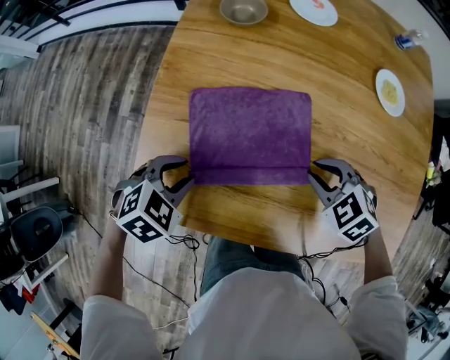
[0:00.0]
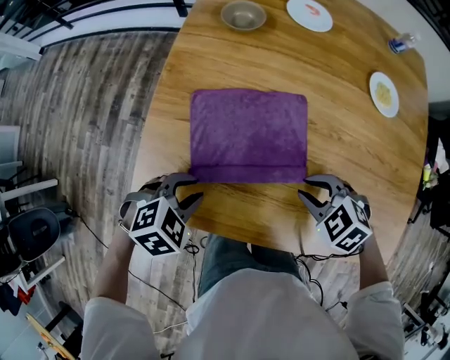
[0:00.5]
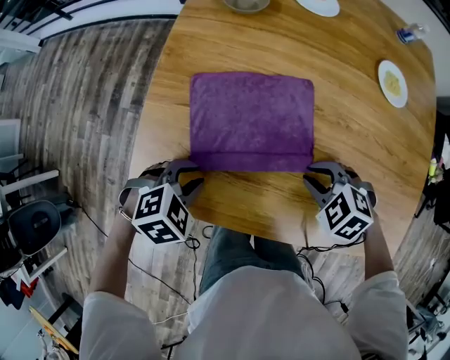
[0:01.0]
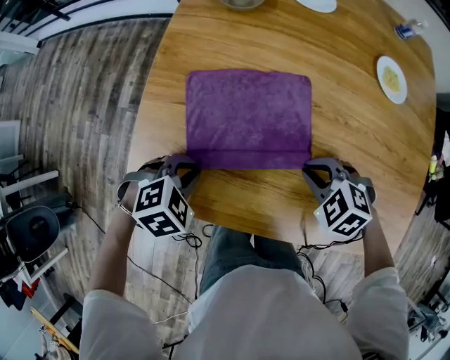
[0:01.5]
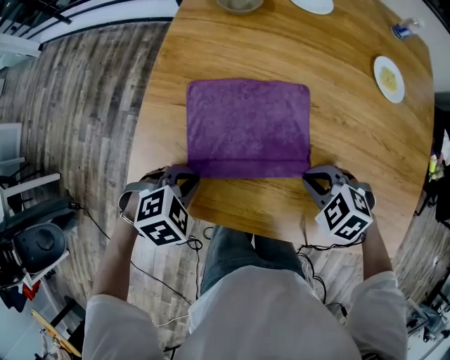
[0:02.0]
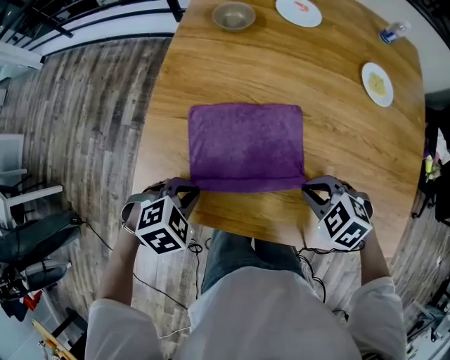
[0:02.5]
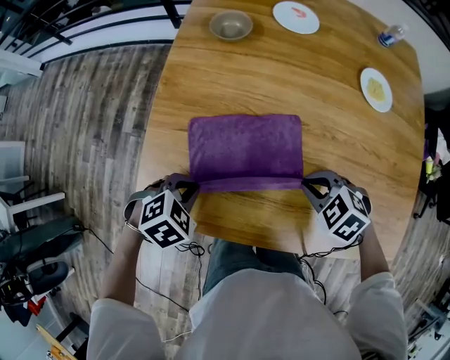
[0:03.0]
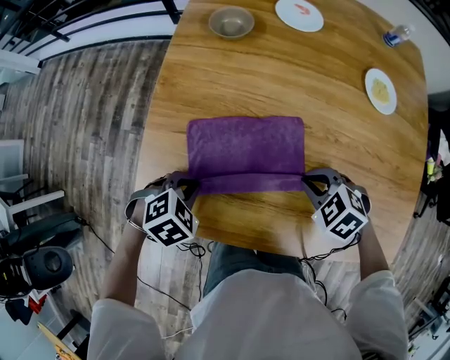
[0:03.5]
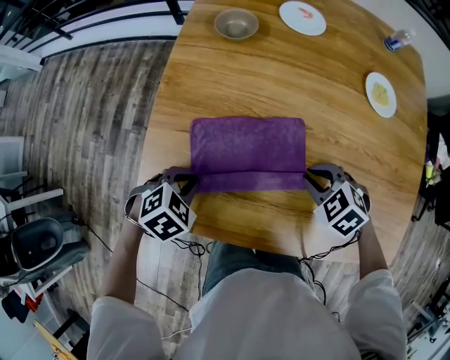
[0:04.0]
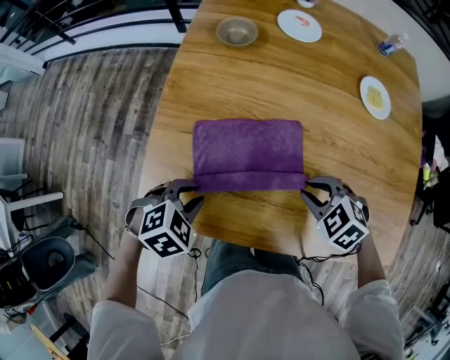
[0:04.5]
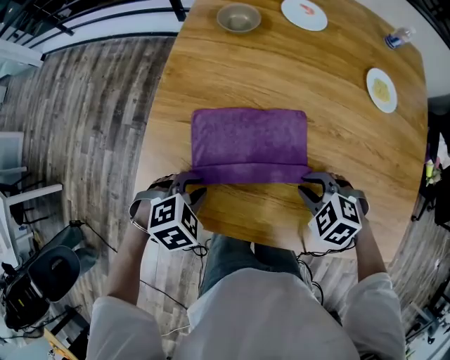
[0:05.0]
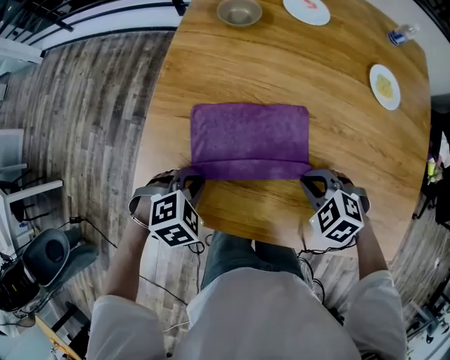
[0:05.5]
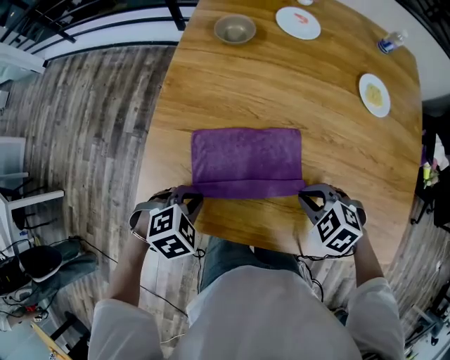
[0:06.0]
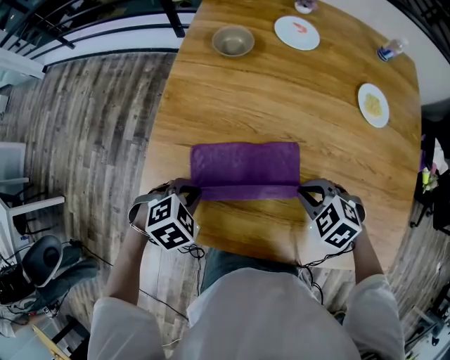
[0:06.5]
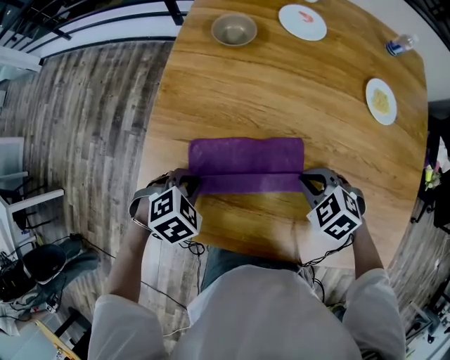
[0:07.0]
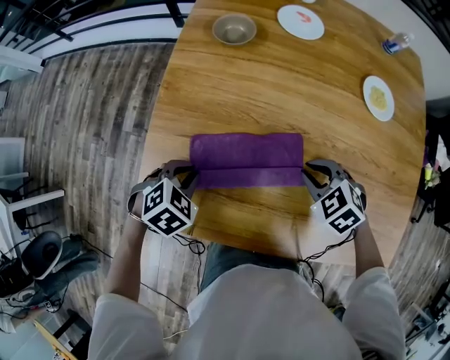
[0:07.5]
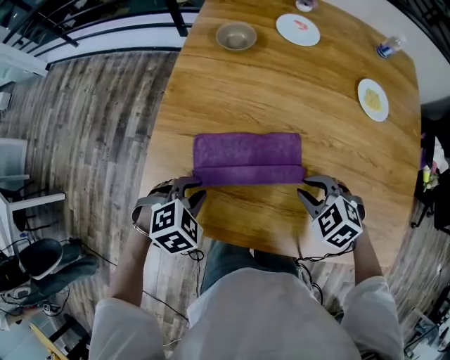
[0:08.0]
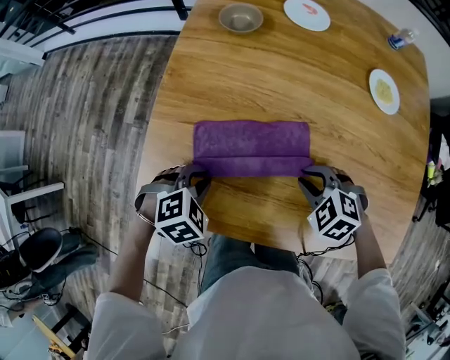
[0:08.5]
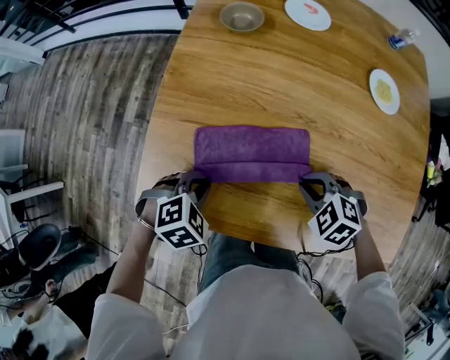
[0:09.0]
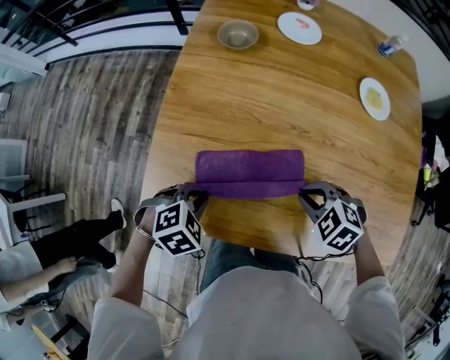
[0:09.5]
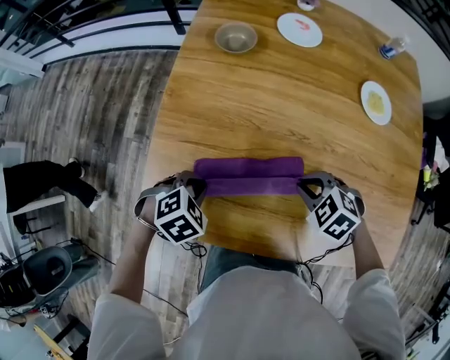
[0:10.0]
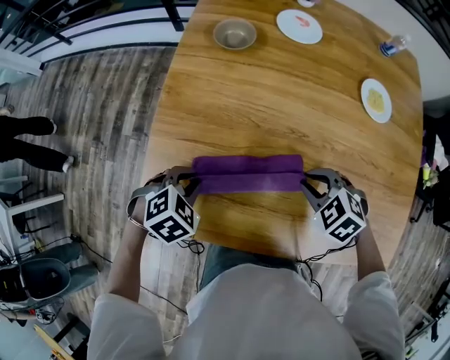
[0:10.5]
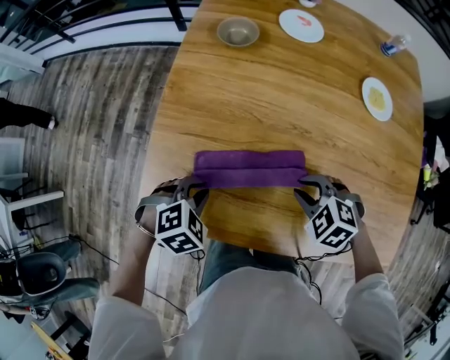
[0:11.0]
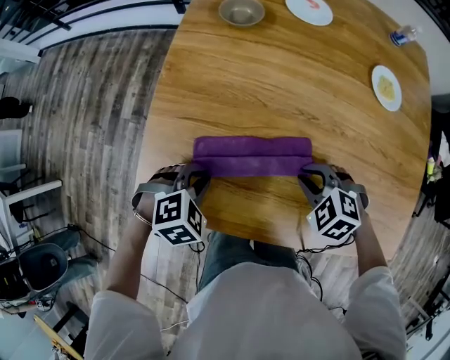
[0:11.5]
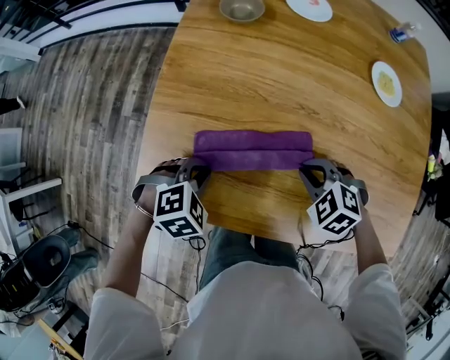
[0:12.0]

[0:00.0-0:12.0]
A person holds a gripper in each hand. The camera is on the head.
0:00.0 to 0:02.0: Both grippers travel together backward, some 5 cm.
0:02.0 to 0:04.0: The left gripper changes place by approximately 5 cm. The right gripper changes place by roughly 5 cm.
0:04.0 to 0:06.0: Both grippers travel together backward, some 5 cm.
0:08.0 to 0:12.0: The grippers make only small movements.

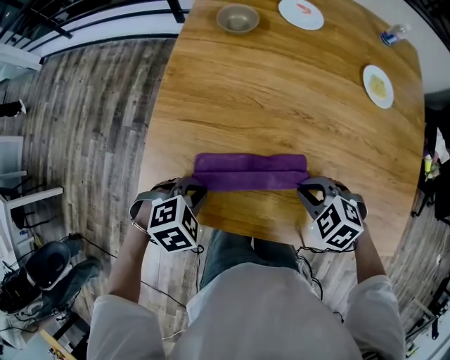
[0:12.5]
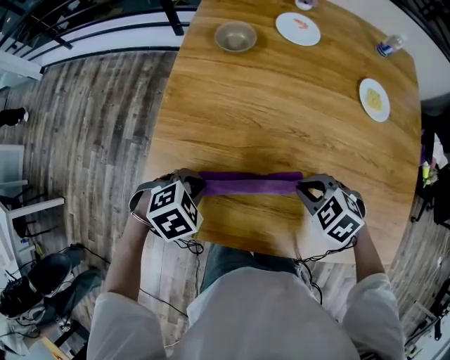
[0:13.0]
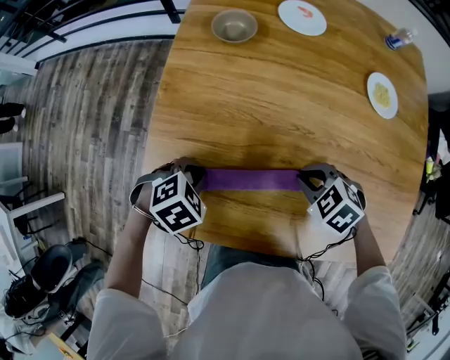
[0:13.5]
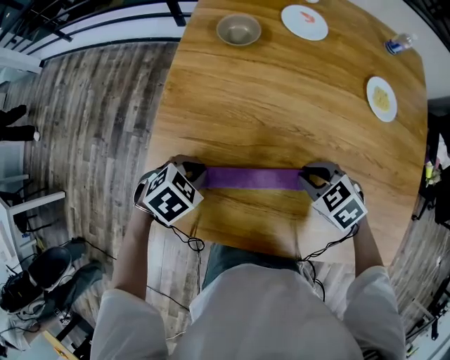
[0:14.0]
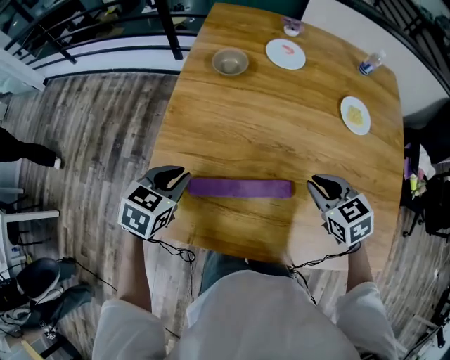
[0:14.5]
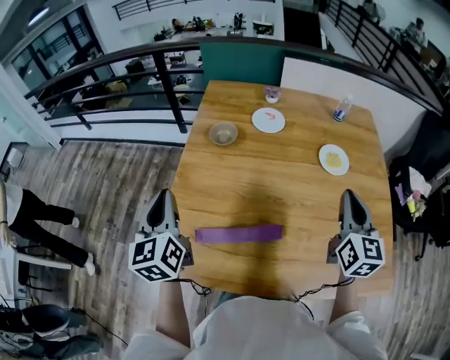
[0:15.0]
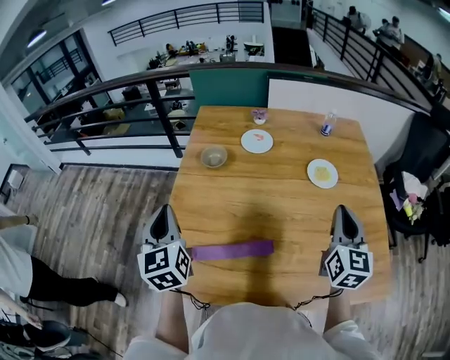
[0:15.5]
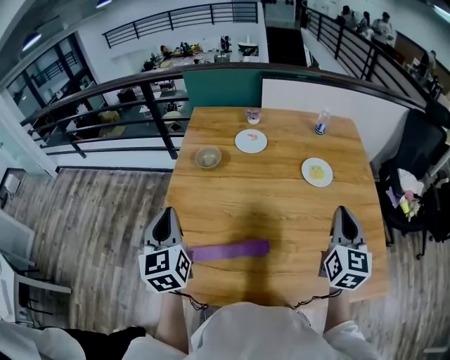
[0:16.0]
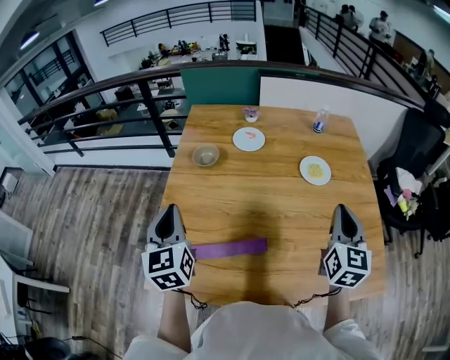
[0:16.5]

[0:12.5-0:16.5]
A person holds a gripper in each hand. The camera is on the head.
0:12.5 to 0:14.5: The grippers both shift forward and upward by approximately 15 cm. The right gripper rotates approximately 40 degrees; the left gripper changes its angle by approximately 40 degrees.
0:14.5 to 0:16.5: The right gripper moves upward and to the right, some 25 cm, and tilts its fingers roughly 40 degrees upward, while the left gripper shifts roughly 20 cm upward, and points its fingers approximately 40 degrees further upward.

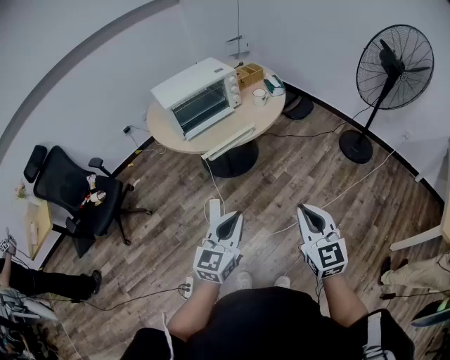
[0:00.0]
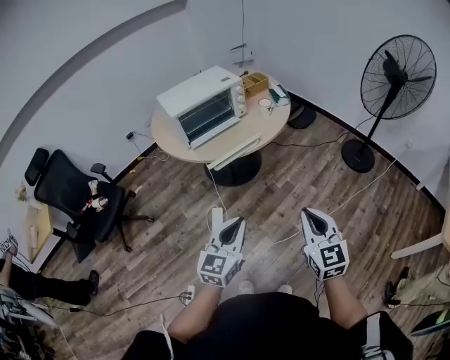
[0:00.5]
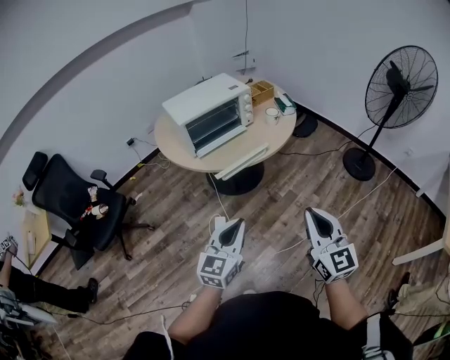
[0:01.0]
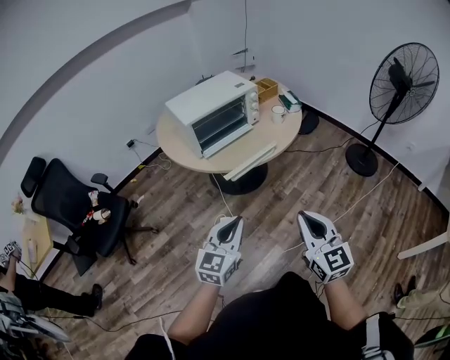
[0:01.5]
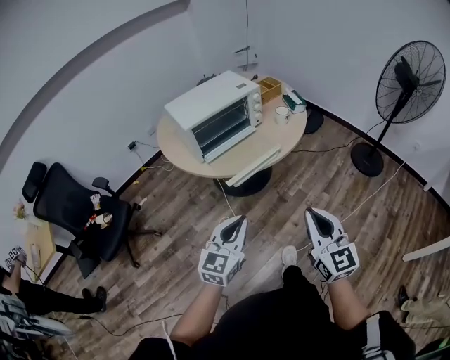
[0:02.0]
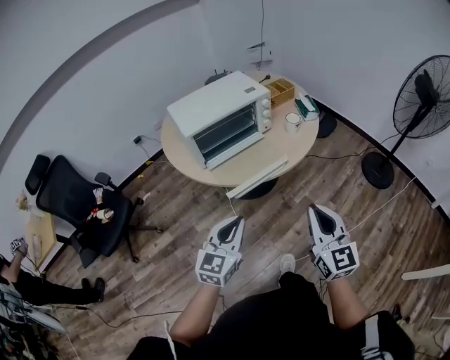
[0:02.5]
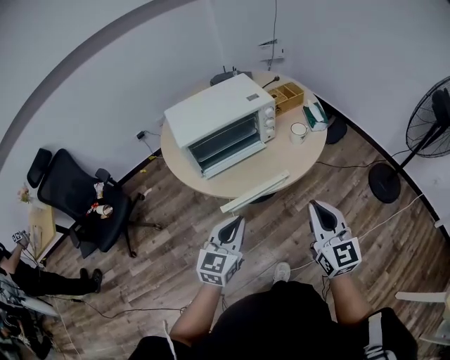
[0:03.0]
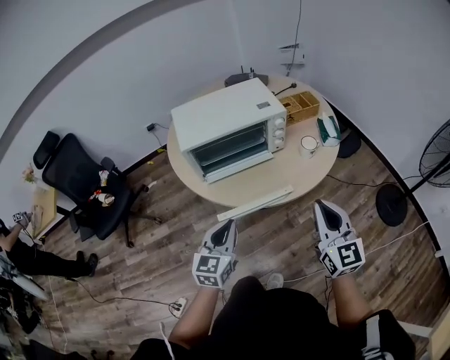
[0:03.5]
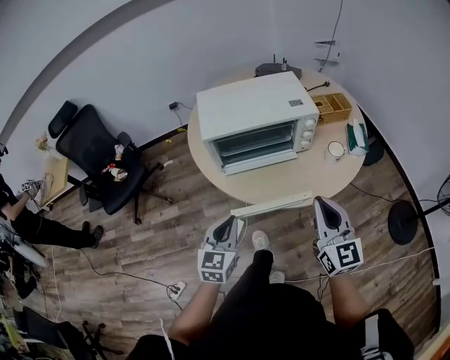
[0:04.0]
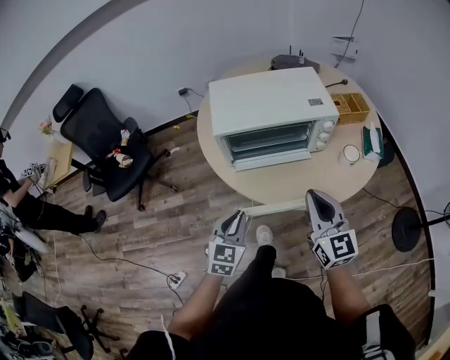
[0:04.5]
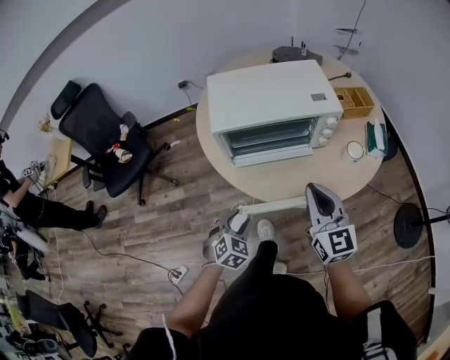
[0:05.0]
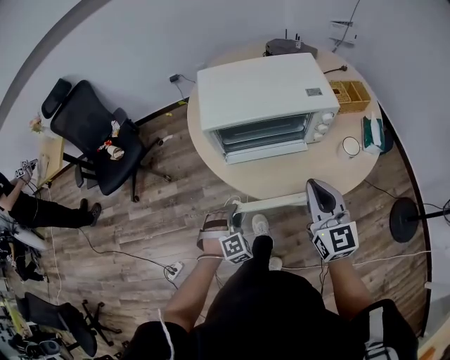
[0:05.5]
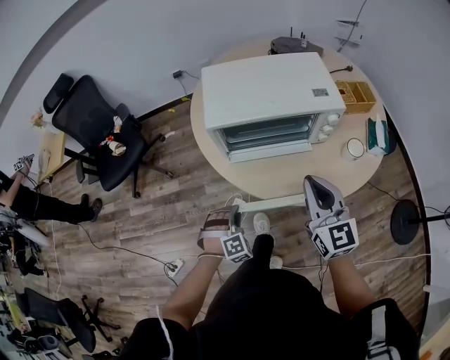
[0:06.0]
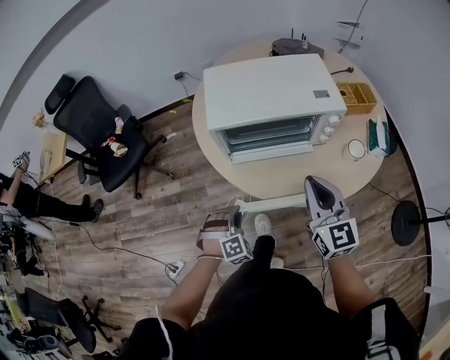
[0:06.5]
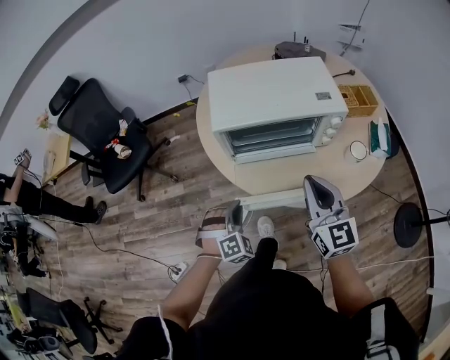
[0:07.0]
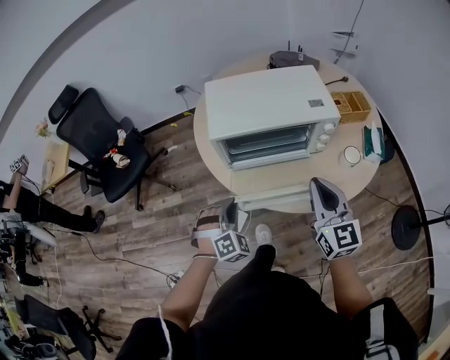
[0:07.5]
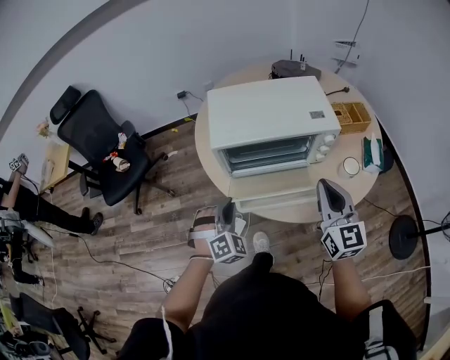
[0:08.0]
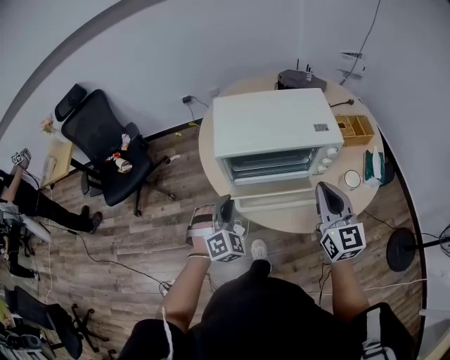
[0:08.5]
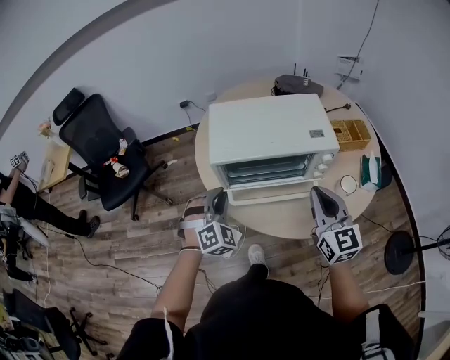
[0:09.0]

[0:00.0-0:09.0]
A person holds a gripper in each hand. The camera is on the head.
0:00.0 to 0:02.0: Both grippers travel together to the left and forward, roughly 15 cm.
0:02.0 to 0:04.5: The right gripper changes place by approximately 35 cm, and turns by approximately 30 degrees, while the left gripper changes place by about 25 cm, and turns by about 40 degrees.
0:04.5 to 0:07.0: The left gripper heads downward, covering roughly 5 cm, rolls clockwise, seen from behind, by some 50 degrees, and opens, then closes once more, while the right gripper moves forward, some 5 cm.
0:07.0 to 0:09.0: The left gripper goes some 15 cm forward and upward; the right gripper heads to the right, covering roughly 5 cm.

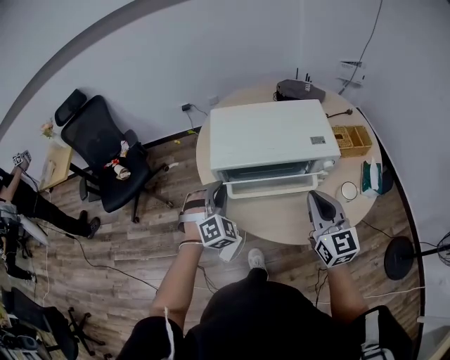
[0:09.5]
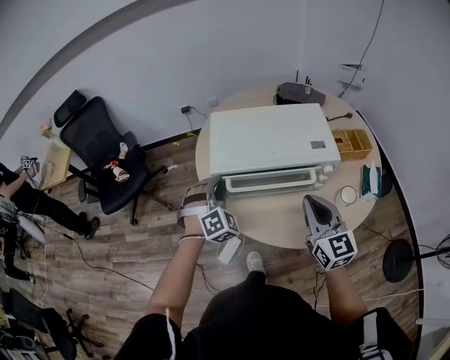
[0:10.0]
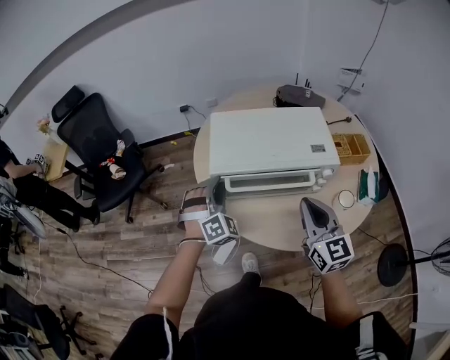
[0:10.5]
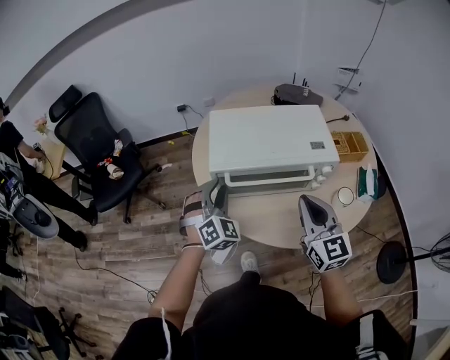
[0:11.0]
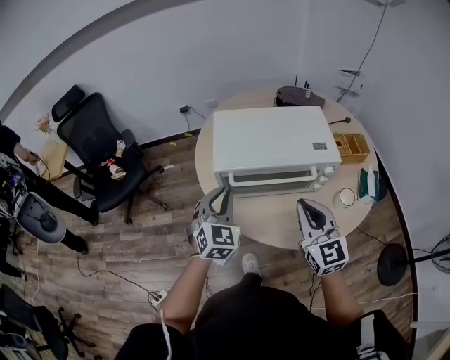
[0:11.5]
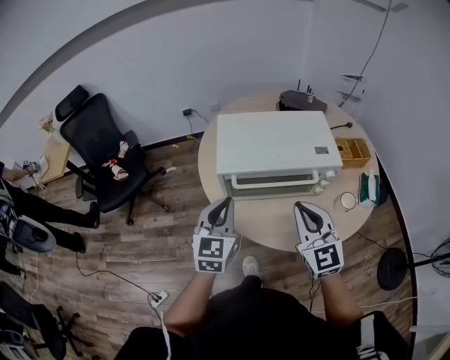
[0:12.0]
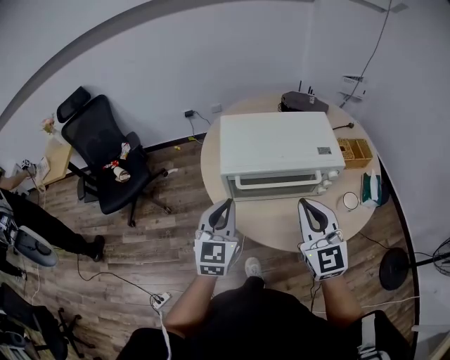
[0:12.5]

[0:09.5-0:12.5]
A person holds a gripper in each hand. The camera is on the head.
0:09.5 to 0:11.0: The grippers move only a little.
0:11.0 to 0:12.5: The left gripper is displaced backward and upward by approximately 10 cm, twists about 40 degrees counterclockwise, seen from behind, and closes its fingers, while the right gripper shifts by roughly 5 cm.
